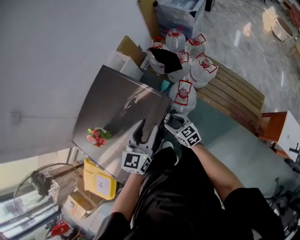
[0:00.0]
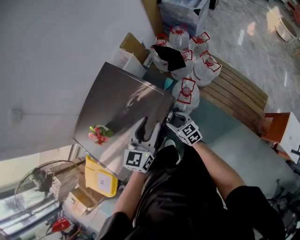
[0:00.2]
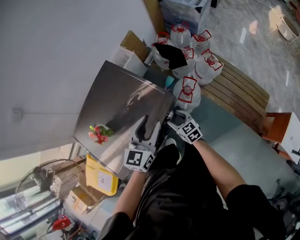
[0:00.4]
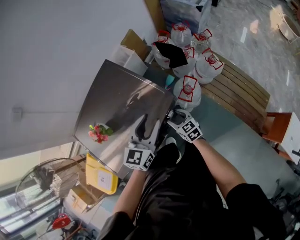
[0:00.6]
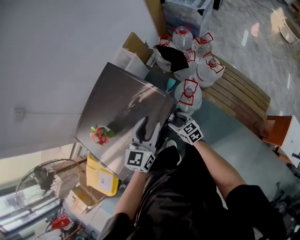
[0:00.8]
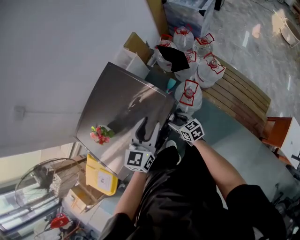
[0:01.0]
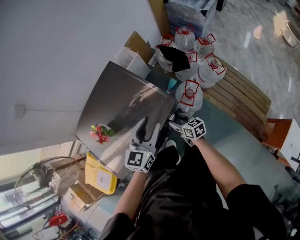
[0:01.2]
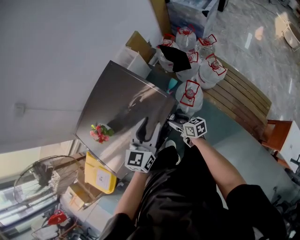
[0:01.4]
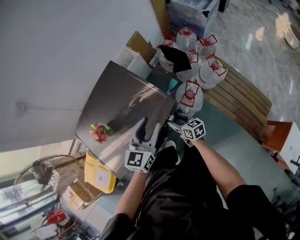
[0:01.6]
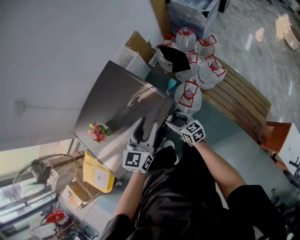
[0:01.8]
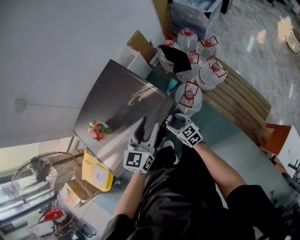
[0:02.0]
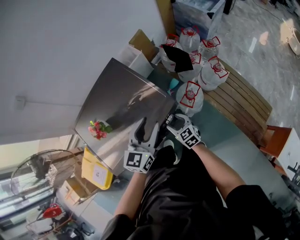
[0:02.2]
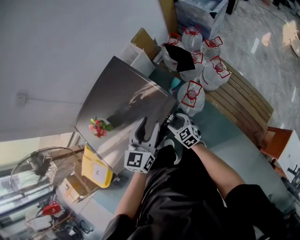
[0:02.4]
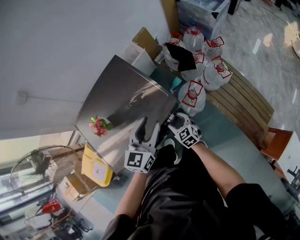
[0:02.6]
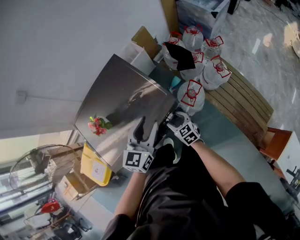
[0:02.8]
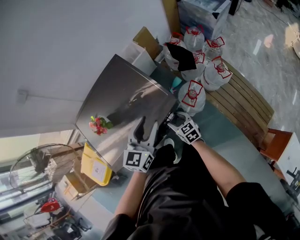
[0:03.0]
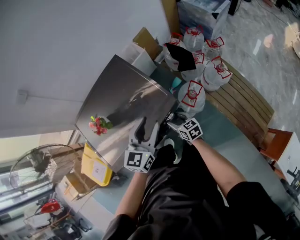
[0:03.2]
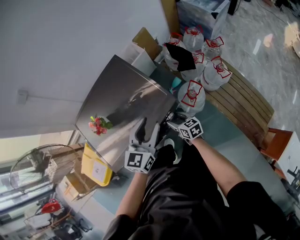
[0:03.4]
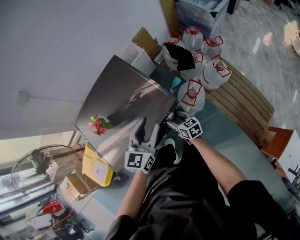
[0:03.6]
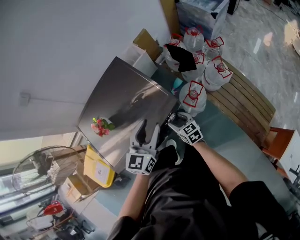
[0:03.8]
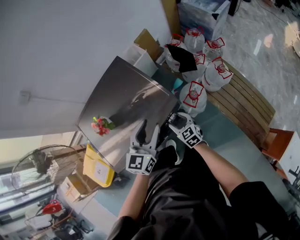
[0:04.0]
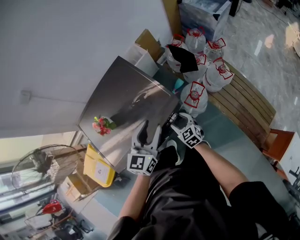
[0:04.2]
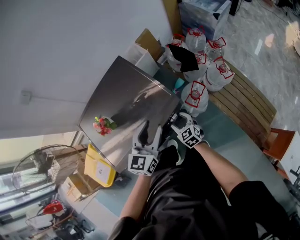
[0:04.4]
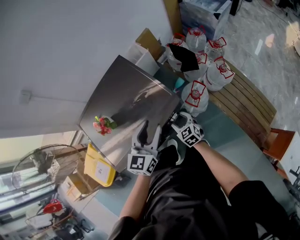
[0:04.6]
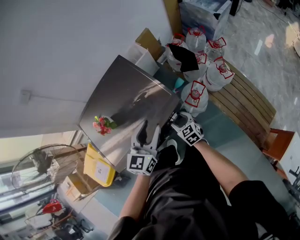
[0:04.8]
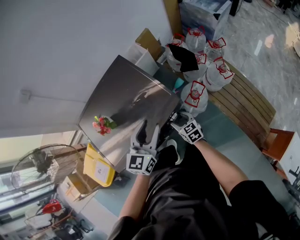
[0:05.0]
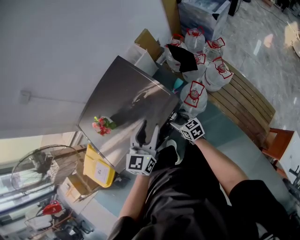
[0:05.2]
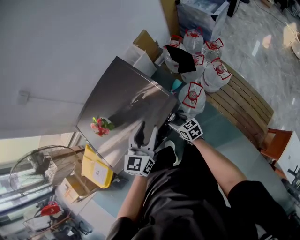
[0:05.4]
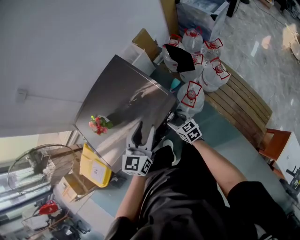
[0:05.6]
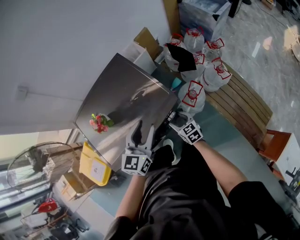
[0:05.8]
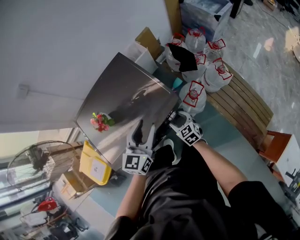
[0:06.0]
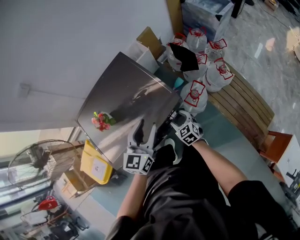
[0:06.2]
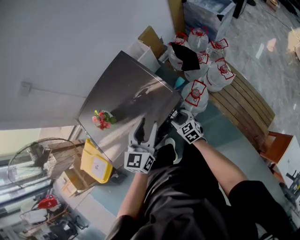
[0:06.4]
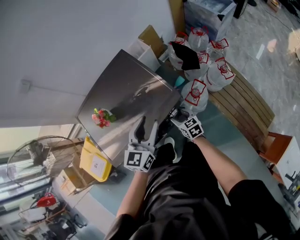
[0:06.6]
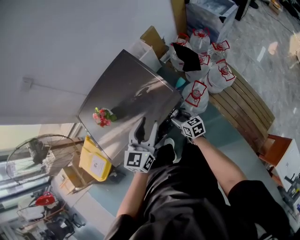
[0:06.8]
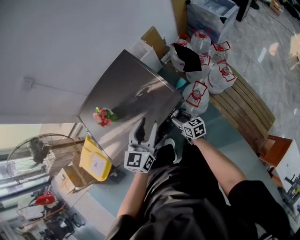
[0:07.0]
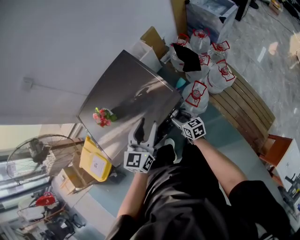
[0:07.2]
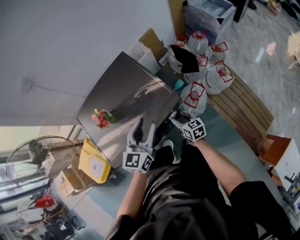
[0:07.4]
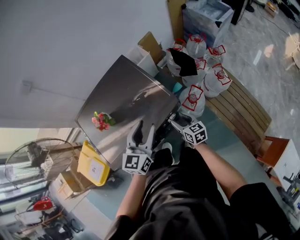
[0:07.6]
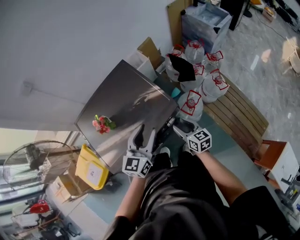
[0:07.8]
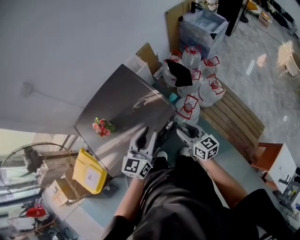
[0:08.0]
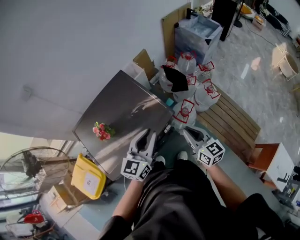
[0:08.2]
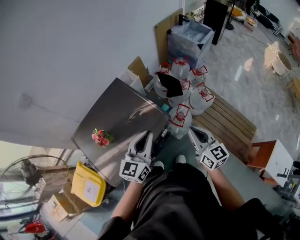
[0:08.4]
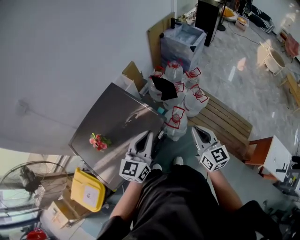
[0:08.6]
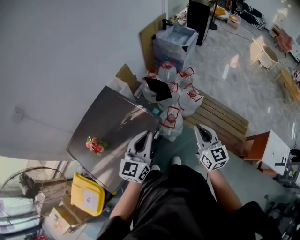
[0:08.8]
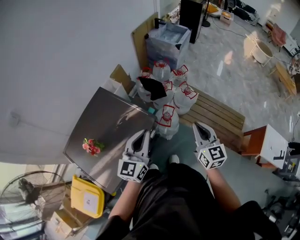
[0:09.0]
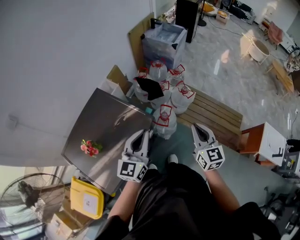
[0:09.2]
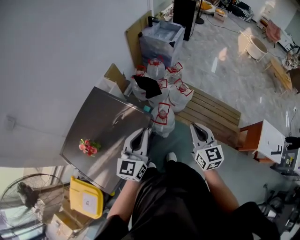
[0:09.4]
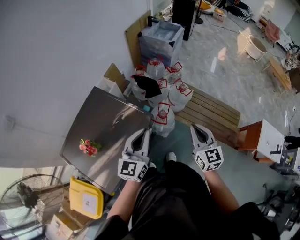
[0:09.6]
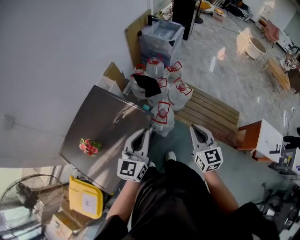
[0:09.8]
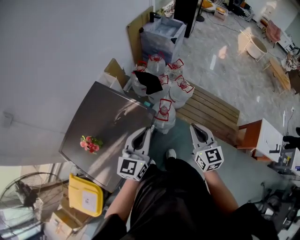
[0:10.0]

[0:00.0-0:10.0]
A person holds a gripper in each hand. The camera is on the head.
0:00.0 to 0:01.4: The right gripper rotates roughly 30 degrees.
0:01.4 to 0:02.8: The right gripper rotates about 40 degrees.
0:05.8 to 0:07.2: The grippers make only small movements.
0:07.2 to 0:08.6: The left gripper is displaced upward by about 10 cm, rotates approximately 20 degrees, and closes up; the right gripper heads upward and to the right, covering roughly 35 cm, turns by approximately 40 degrees, and closes up.
0:08.6 to 0:10.0: The grippers move only a little.

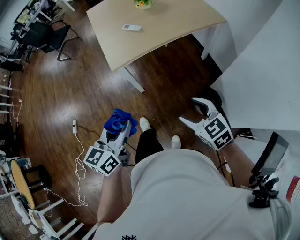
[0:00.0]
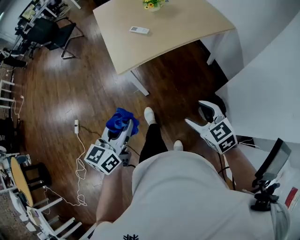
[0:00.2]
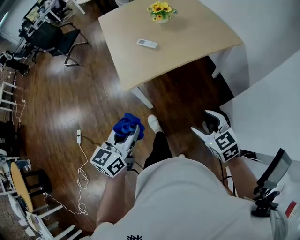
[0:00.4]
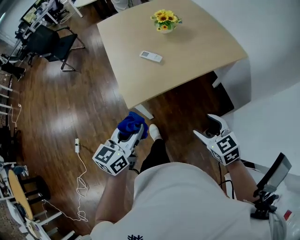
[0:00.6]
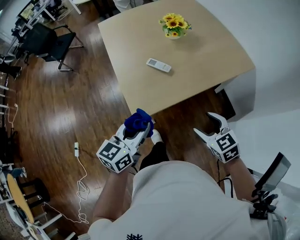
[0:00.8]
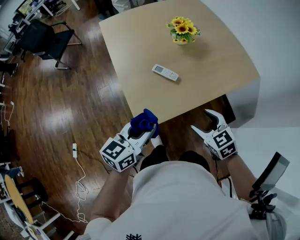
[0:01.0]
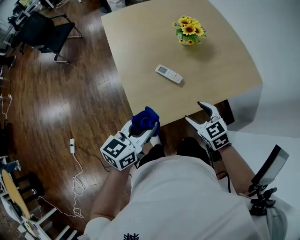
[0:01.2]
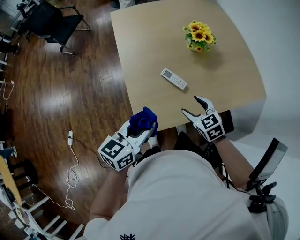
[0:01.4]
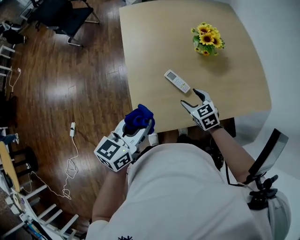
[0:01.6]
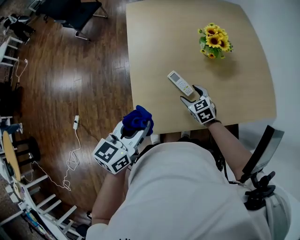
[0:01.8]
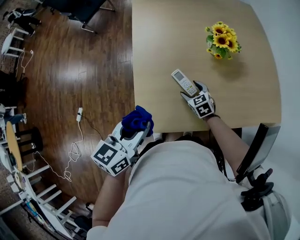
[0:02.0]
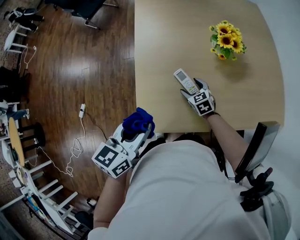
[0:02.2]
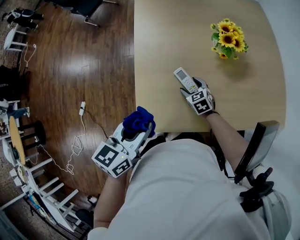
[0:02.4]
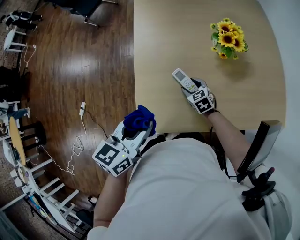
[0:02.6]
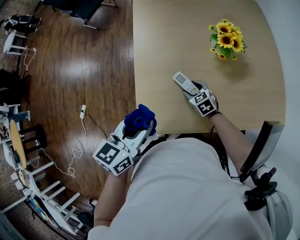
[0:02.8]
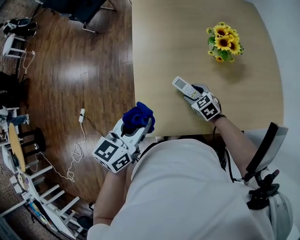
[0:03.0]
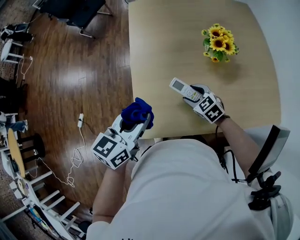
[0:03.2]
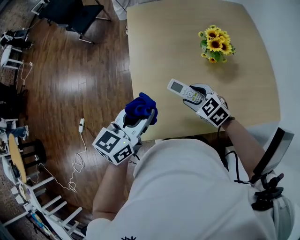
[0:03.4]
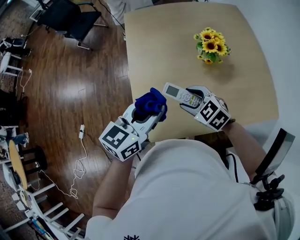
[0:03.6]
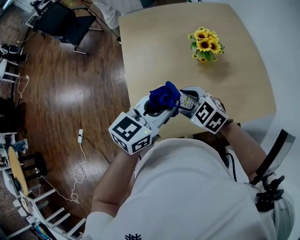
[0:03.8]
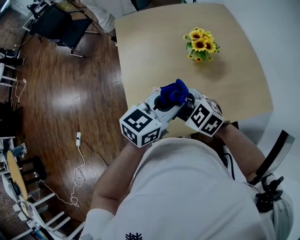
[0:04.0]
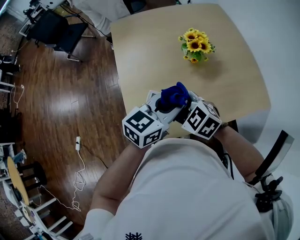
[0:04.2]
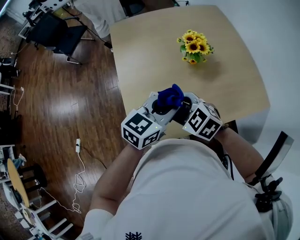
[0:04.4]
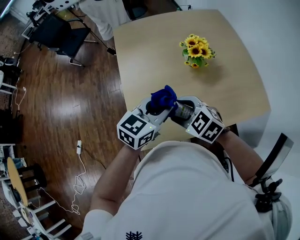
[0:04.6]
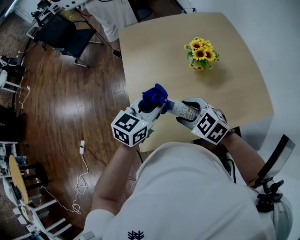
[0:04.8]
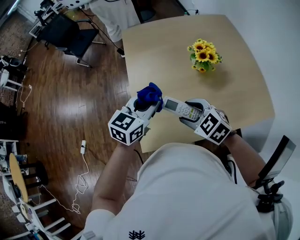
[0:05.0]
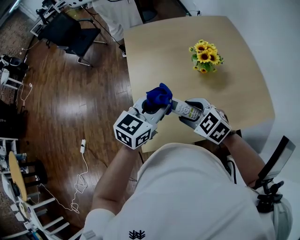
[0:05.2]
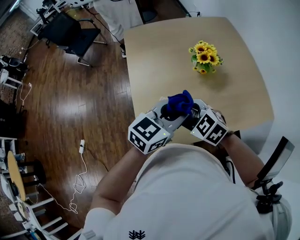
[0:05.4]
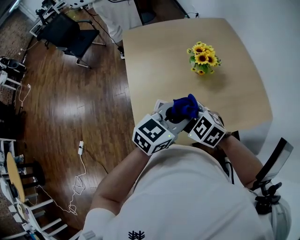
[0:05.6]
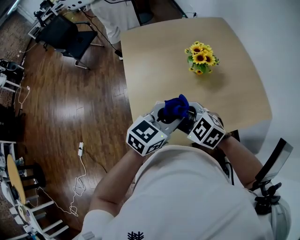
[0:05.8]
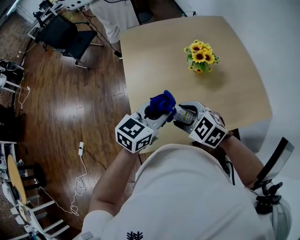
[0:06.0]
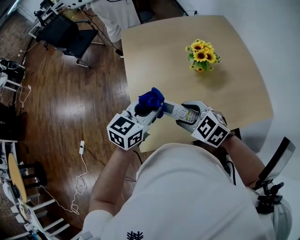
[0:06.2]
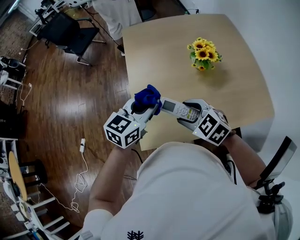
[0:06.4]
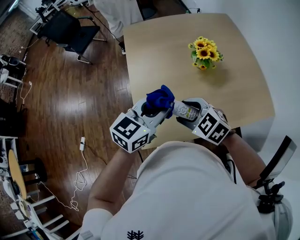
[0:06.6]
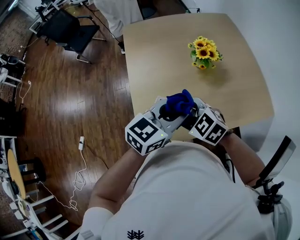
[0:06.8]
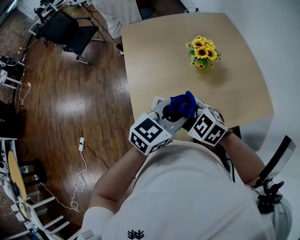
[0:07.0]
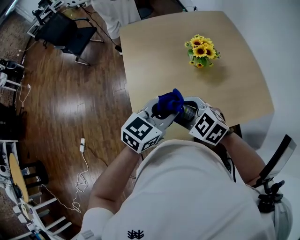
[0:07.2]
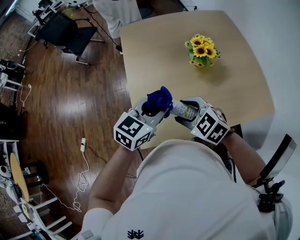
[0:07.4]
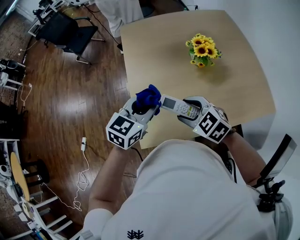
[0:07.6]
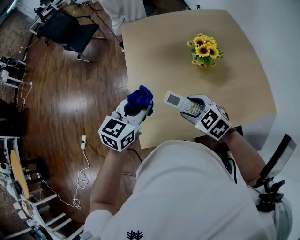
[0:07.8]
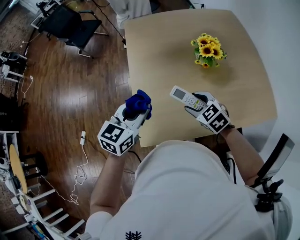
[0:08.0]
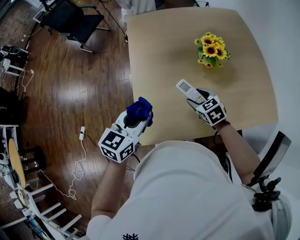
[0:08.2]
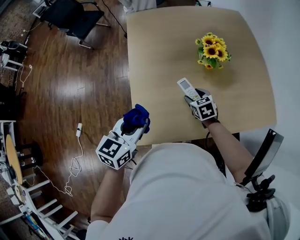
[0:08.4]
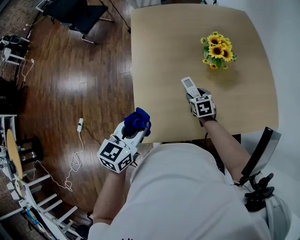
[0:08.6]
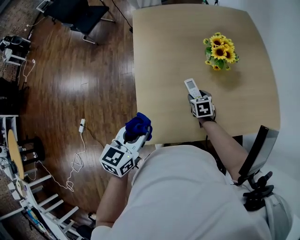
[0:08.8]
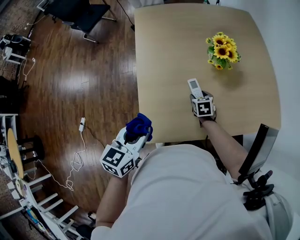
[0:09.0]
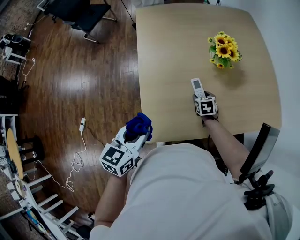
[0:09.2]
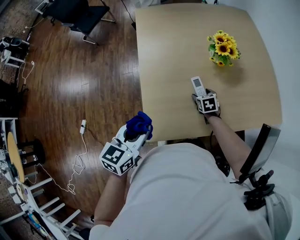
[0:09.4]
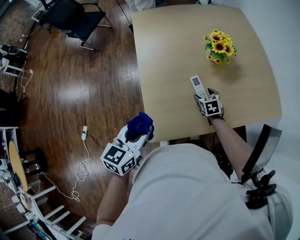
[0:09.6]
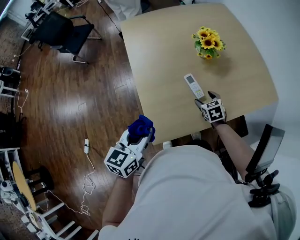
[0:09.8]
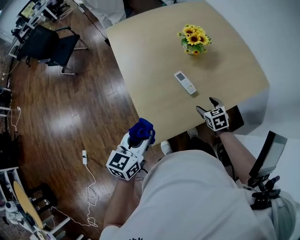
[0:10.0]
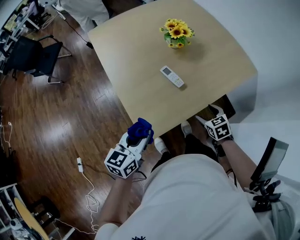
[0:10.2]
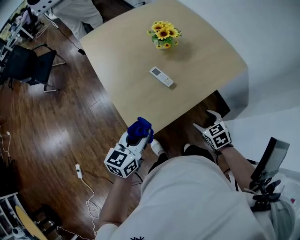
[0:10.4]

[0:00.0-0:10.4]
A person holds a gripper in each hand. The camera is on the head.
0:00.0 to 0:01.4: The pair of grippers is taken forward, some 40 cm.
0:01.4 to 0:03.0: The right gripper is displaced forward and downward by some 15 cm, while the left gripper heads forward, covering roughly 5 cm.
0:03.0 to 0:04.4: The right gripper is displaced upward by roughly 20 cm, while the left gripper goes roughly 15 cm to the right, and rotates about 30 degrees.
0:04.4 to 0:06.0: The left gripper goes left and right, about 10 cm each way, reversing 2 times.
0:06.0 to 0:07.4: The left gripper moves left and right over roughly 10 cm, changing direction 2 times.
0:07.4 to 0:09.0: The right gripper is displaced downward and forward by roughly 30 cm, and rotates roughly 50 degrees. Meanwhile the left gripper shifts some 15 cm to the left and backward, and swivels approximately 20 degrees.
0:09.0 to 0:10.4: The left gripper shifts about 5 cm backward, and turns by roughly 30 degrees. Meanwhile the right gripper travels backward, to the right and upward by some 30 cm.

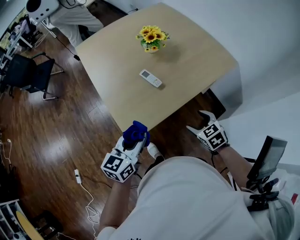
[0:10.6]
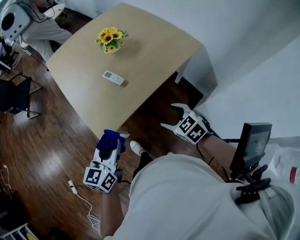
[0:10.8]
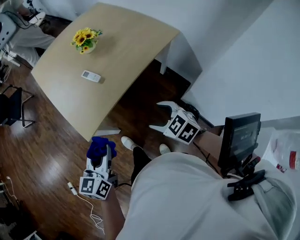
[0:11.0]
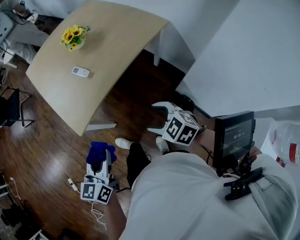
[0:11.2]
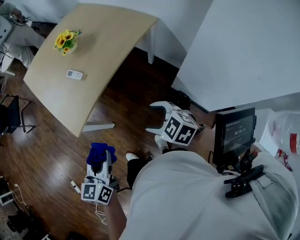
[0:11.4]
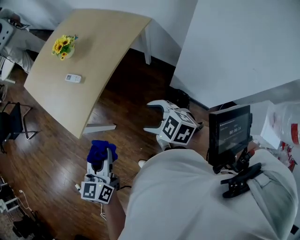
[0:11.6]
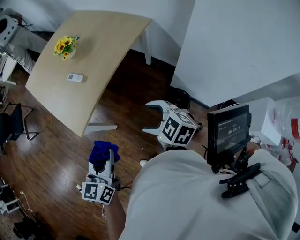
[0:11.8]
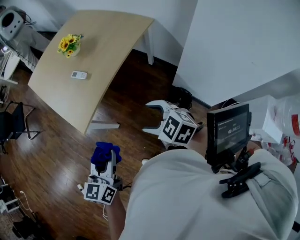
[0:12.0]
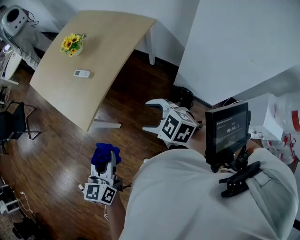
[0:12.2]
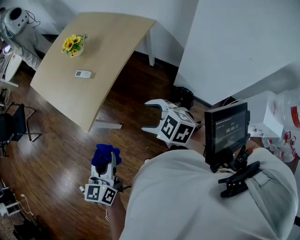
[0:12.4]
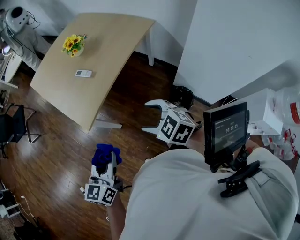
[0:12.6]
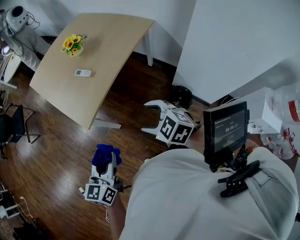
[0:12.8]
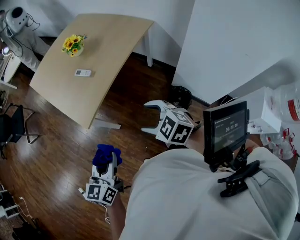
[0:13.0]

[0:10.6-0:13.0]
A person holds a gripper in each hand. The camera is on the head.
0:10.6 to 0:11.8: The right gripper heads backward, covering approximately 20 cm. Meanwhile the left gripper travels backward and to the right by some 25 cm.
0:11.8 to 0:13.0: Both grippers move to the left, roughly 5 cm.

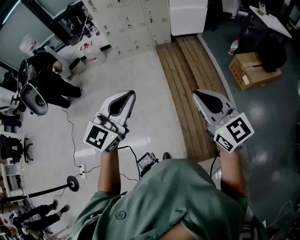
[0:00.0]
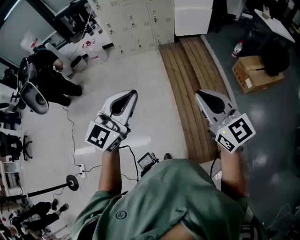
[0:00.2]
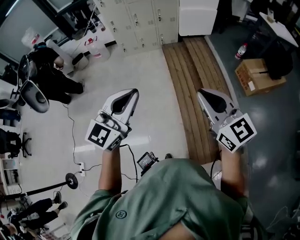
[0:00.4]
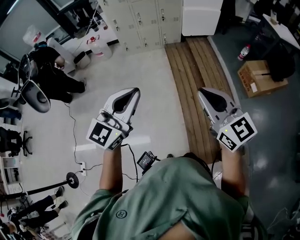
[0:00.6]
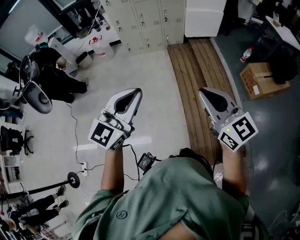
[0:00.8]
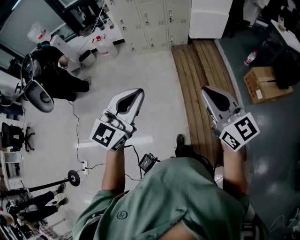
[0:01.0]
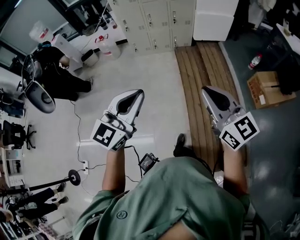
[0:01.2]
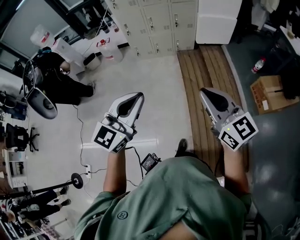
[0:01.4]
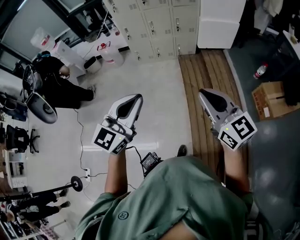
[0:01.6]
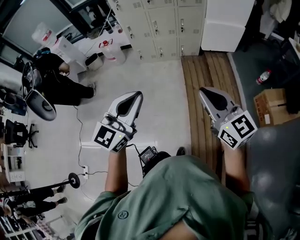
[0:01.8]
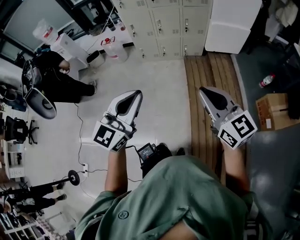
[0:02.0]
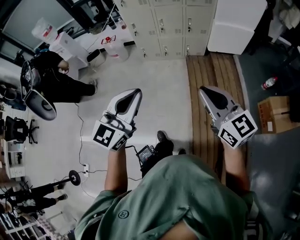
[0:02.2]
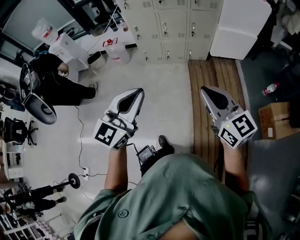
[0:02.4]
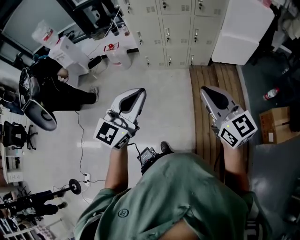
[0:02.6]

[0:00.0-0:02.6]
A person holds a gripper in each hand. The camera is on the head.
0:00.0 to 0:01.2: Both grippers move forward and to the left, approximately 15 cm.
0:01.2 to 0:02.6: Both grippers travel together forward, roughly 30 cm.
